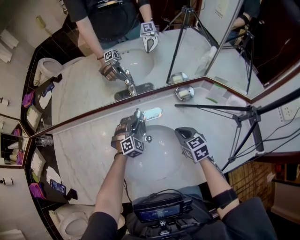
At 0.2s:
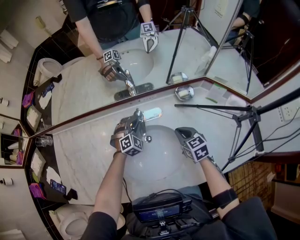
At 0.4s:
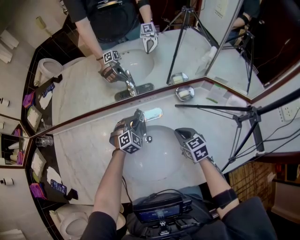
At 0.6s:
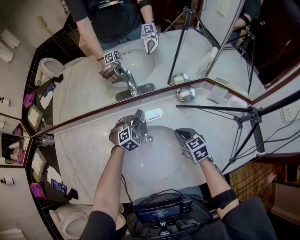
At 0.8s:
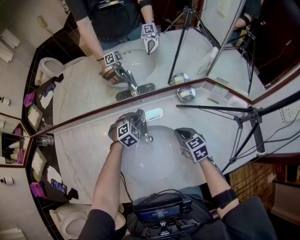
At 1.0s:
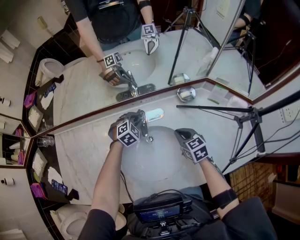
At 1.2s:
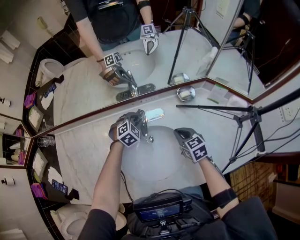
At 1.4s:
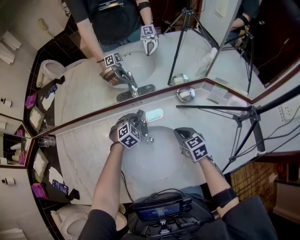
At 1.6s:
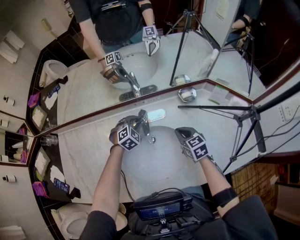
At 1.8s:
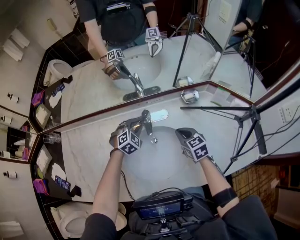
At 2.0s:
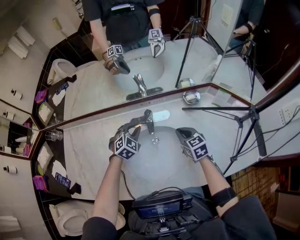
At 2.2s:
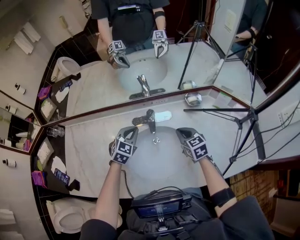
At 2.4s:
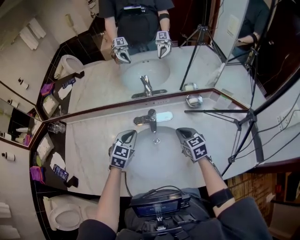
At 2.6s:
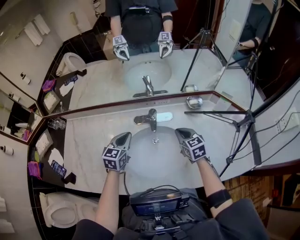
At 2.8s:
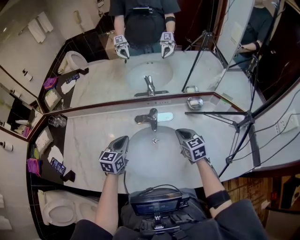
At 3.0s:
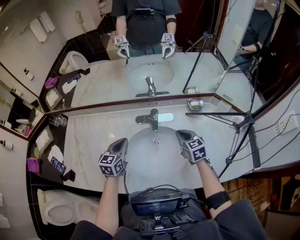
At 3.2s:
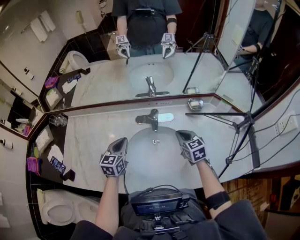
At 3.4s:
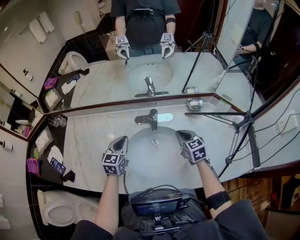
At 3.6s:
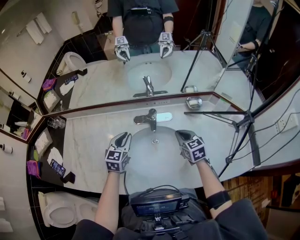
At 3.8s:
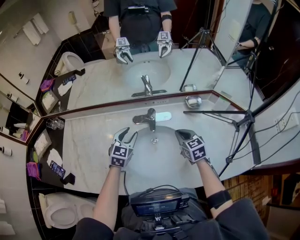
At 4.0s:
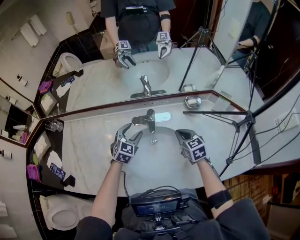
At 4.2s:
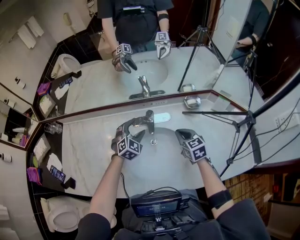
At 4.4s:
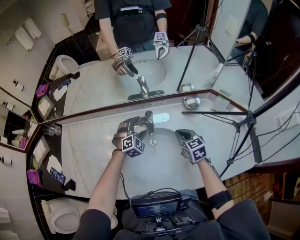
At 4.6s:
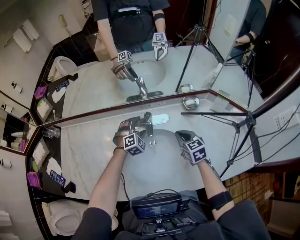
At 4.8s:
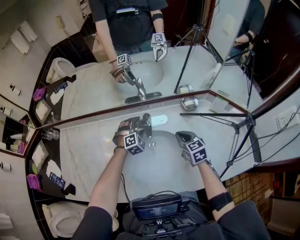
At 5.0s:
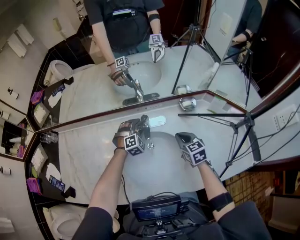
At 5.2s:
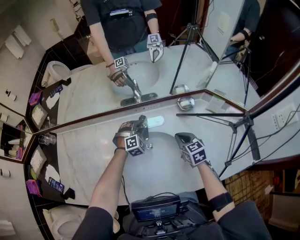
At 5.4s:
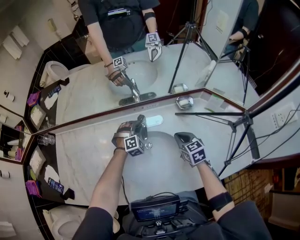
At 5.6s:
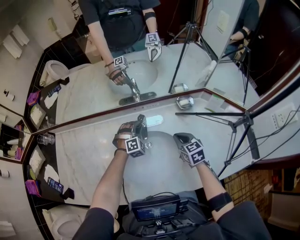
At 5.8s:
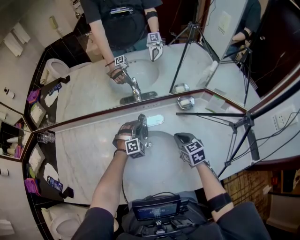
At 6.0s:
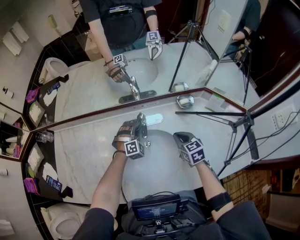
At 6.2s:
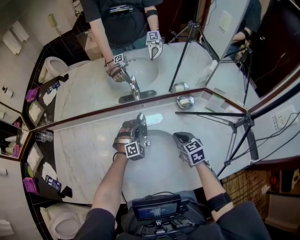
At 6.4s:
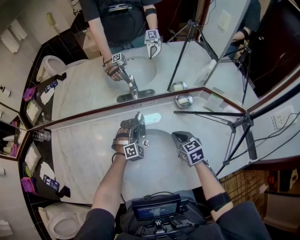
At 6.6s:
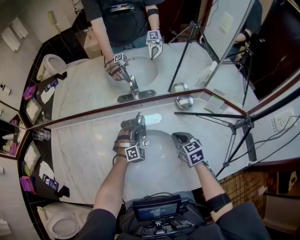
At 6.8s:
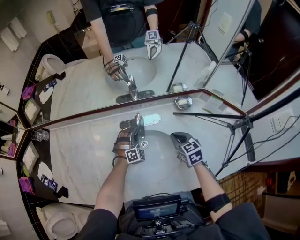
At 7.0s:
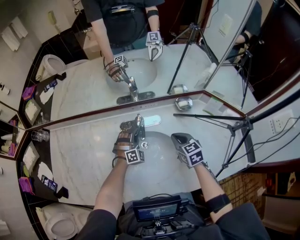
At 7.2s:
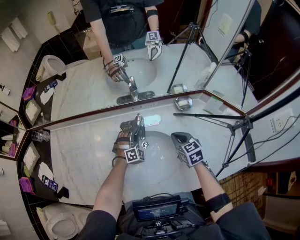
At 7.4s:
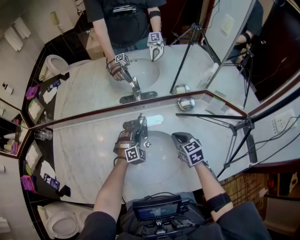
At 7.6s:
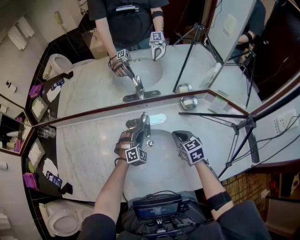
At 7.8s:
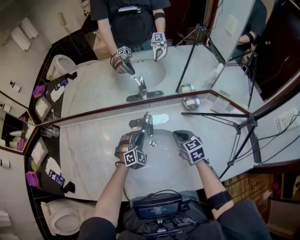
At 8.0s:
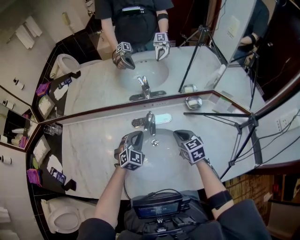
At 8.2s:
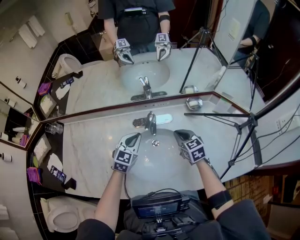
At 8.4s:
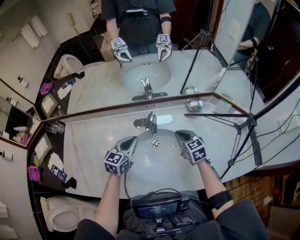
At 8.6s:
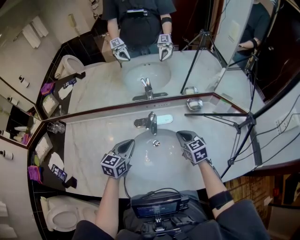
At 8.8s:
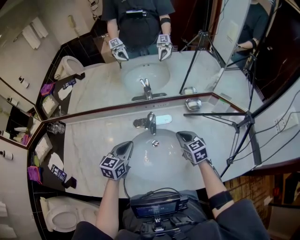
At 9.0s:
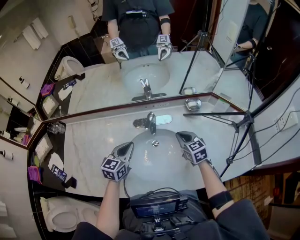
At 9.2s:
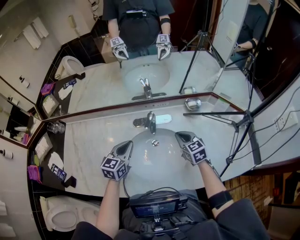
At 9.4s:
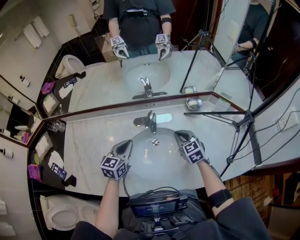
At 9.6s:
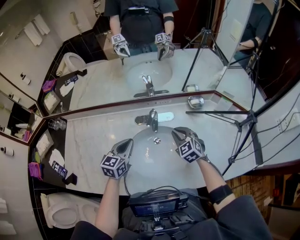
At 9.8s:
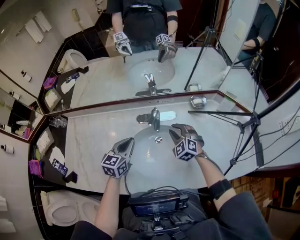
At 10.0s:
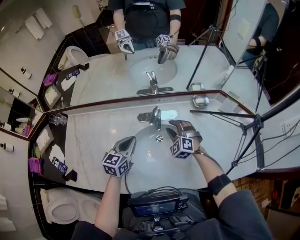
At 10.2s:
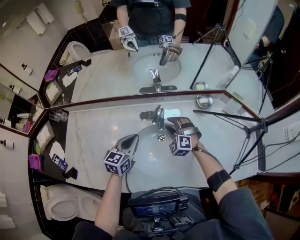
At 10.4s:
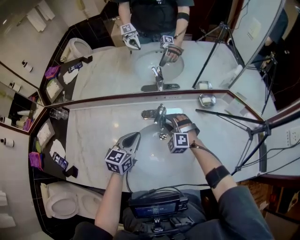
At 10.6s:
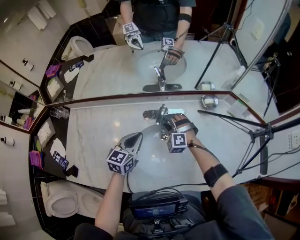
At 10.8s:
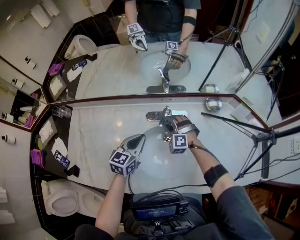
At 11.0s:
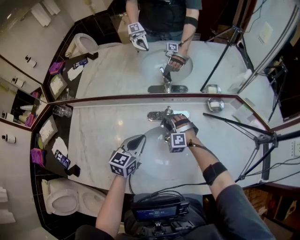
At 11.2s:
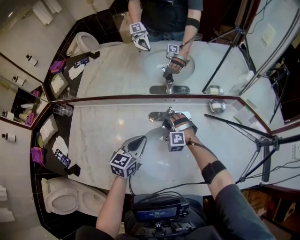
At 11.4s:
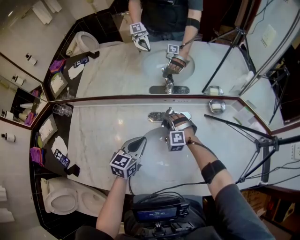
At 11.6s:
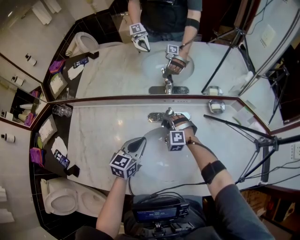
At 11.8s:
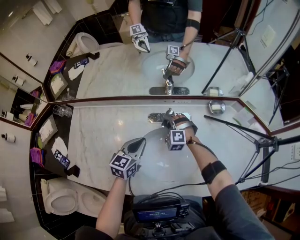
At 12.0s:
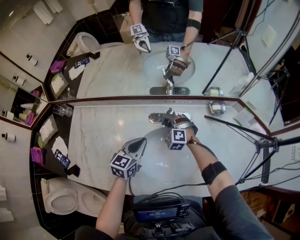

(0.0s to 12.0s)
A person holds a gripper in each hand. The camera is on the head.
1.6s - 3.0s: The right gripper ends up approximately 5 cm from where it was. The left gripper travels backward, to the left and upward by roughly 25 cm, and rolls counterclockwise, seen from behind, by about 60 degrees.
3.0s - 4.4s: The left gripper is displaced to the right, forward and downward by about 20 cm, rotates around the line of its fingers by some 60 degrees, clockwise from behind, and opens.
4.4s - 6.0s: The left gripper moves approximately 5 cm, and closes up.
6.0s - 7.6s: The grippers move only a little.
7.6s - 9.0s: The left gripper travels upward, backward and to the left by some 20 cm, and rolls counterclockwise, seen from behind, by roughly 60 degrees.
9.0s - 10.4s: The right gripper is displaced to the left, forward and downward by roughly 15 cm, twists approximately 60 degrees counterclockwise, seen from behind, and opens.
10.4s - 12.0s: The right gripper changes place by about 5 cm, and closes up.

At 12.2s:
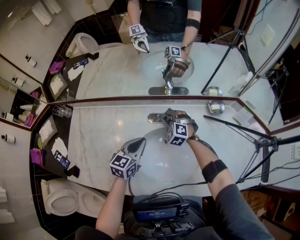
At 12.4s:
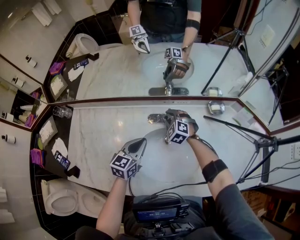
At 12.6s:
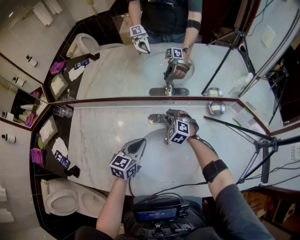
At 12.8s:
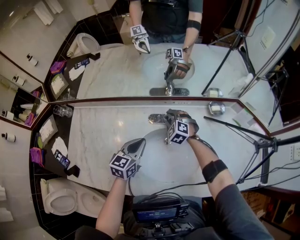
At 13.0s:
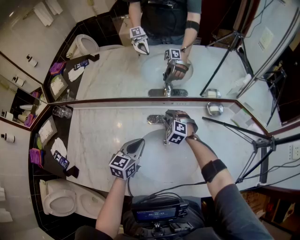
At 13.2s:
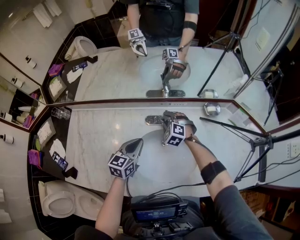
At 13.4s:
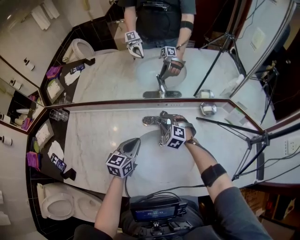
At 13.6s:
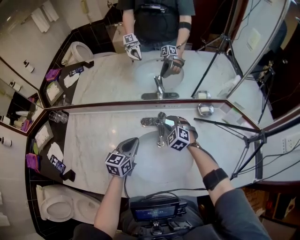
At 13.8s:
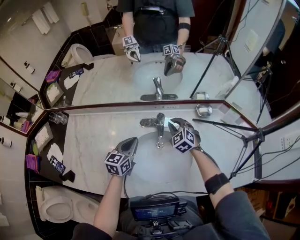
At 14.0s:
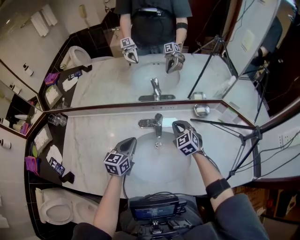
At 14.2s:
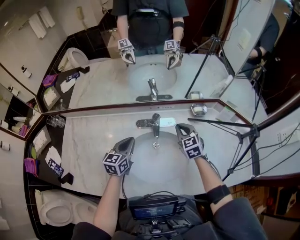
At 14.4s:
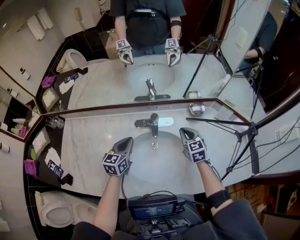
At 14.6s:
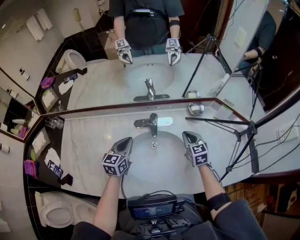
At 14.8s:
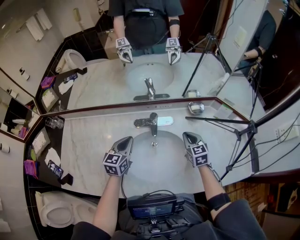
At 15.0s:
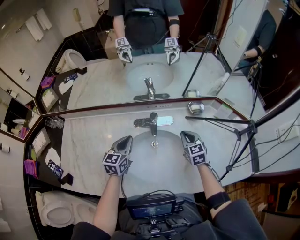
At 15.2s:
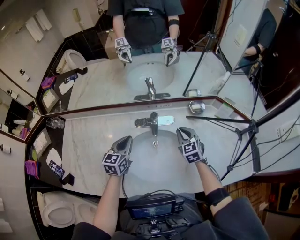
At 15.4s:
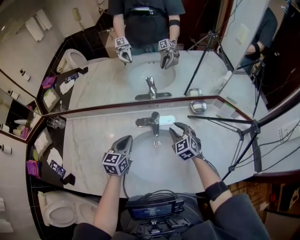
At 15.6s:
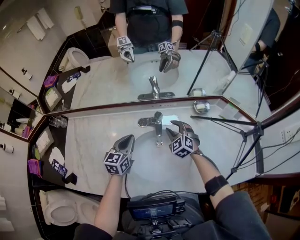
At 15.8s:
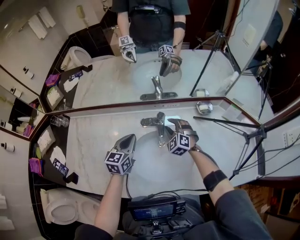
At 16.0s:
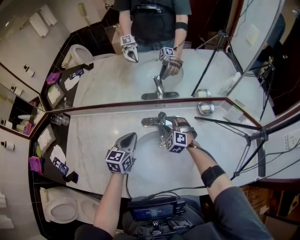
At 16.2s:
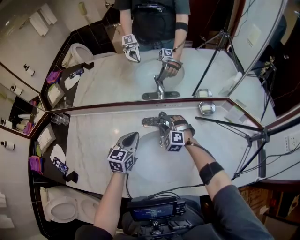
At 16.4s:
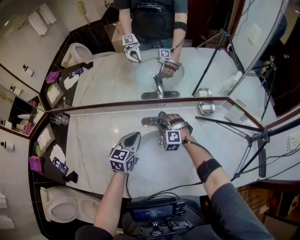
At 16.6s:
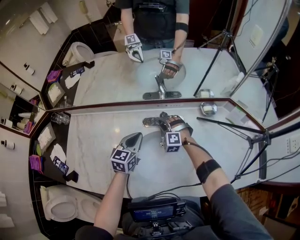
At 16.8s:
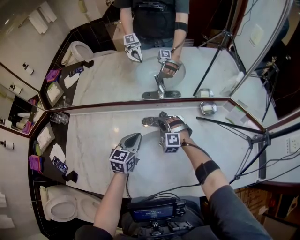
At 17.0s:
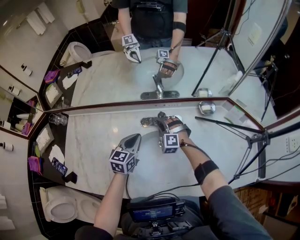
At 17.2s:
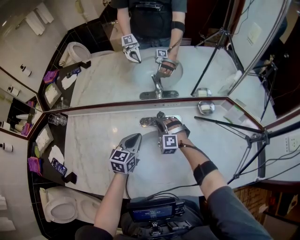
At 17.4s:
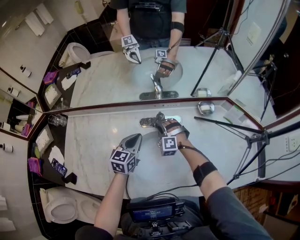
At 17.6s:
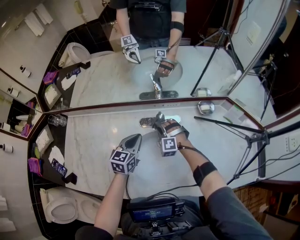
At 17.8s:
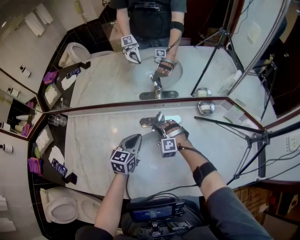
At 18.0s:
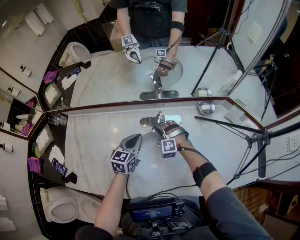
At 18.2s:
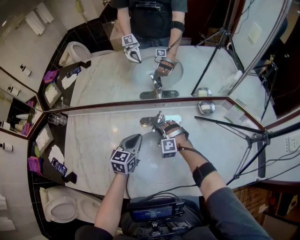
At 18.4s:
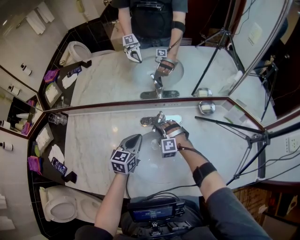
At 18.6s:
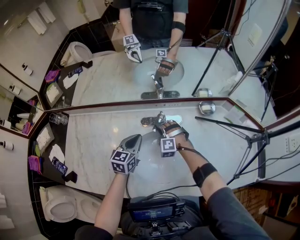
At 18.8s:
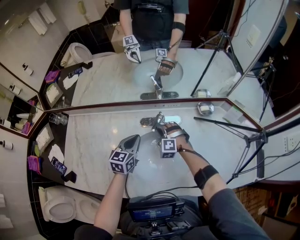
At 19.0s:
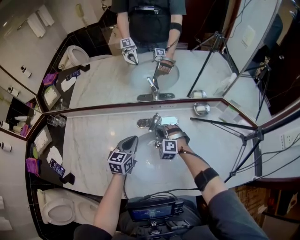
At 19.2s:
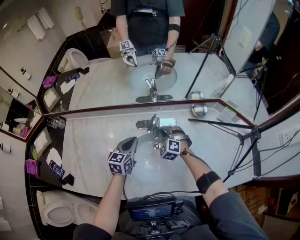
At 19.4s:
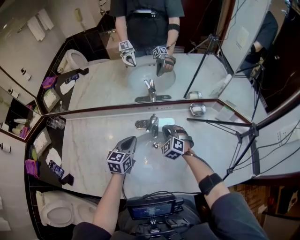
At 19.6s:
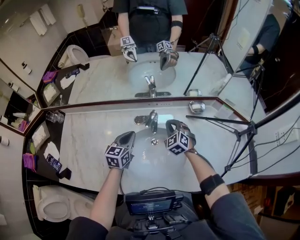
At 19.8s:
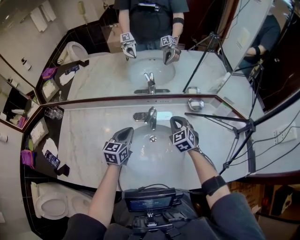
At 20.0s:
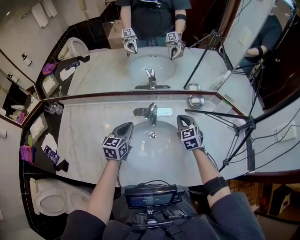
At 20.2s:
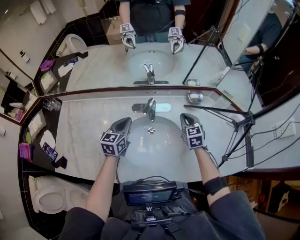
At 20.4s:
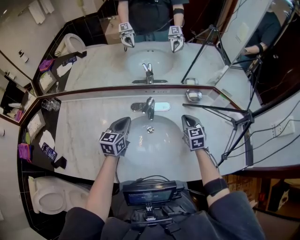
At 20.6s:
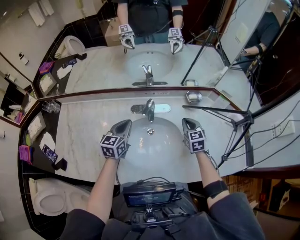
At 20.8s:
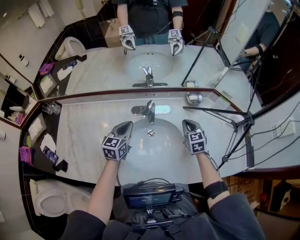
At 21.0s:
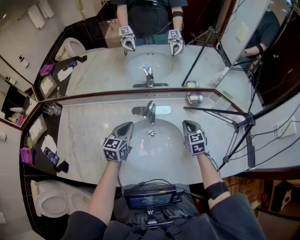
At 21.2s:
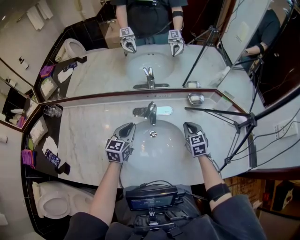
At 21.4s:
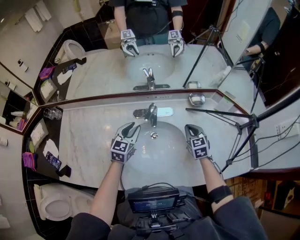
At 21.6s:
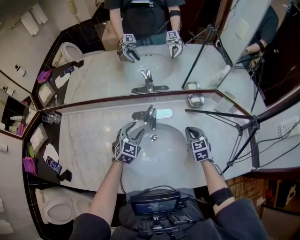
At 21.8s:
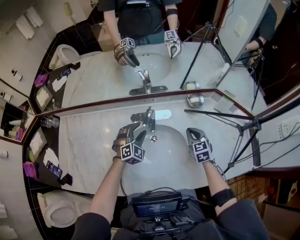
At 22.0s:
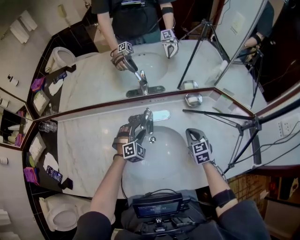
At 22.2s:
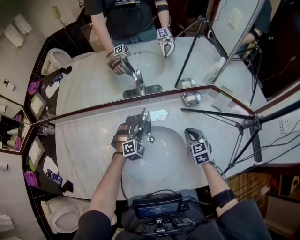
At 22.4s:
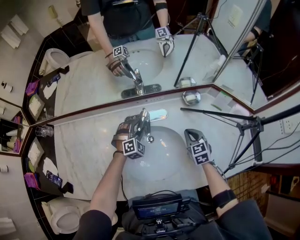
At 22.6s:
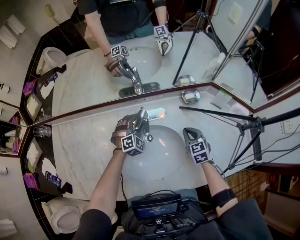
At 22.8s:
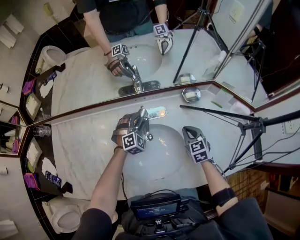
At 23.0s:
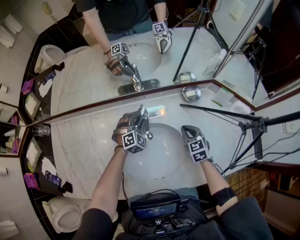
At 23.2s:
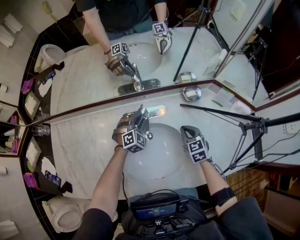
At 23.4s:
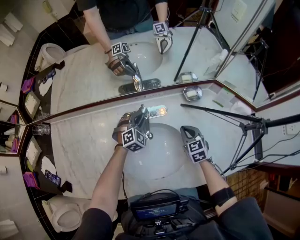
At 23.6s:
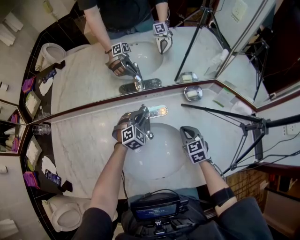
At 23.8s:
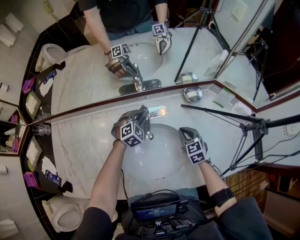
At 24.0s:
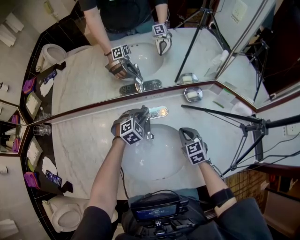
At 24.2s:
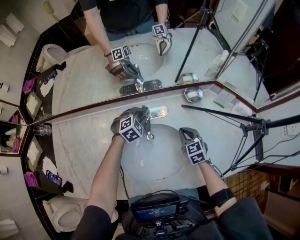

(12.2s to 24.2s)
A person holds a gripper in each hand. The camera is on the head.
12.2s - 13.8s: The right gripper travels to the right and upward by roughly 10 cm, and rotates roughly 20 degrees.
13.8s - 15.2s: The right gripper shifts about 10 cm to the right and backward, and swivels approximately 20 degrees.
15.2s - 16.6s: The right gripper is displaced to the left, downward and forward by about 20 cm, rotates around the line of its fingers by roughly 60 degrees, counterclockwise from behind, and opens its fingers.
16.6s - 18.2s: The grippers make only small movements.
18.2s - 19.8s: The right gripper travels to the right and upward by some 15 cm, and rolls clockwise, seen from behind, by approximately 50 degrees.
19.8s - 21.2s: The right gripper goes about 10 cm to the right.
21.2s - 22.6s: The left gripper is displaced downward, forward and to the right by approximately 20 cm, twists some 60 degrees clockwise, seen from behind, and opens.
22.6s - 24.2s: The left gripper turns by roughly 20 degrees, and closes up.
